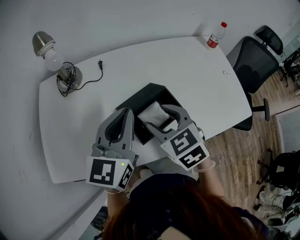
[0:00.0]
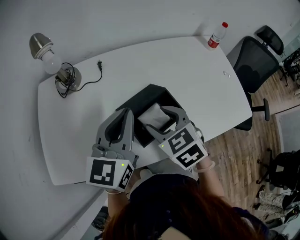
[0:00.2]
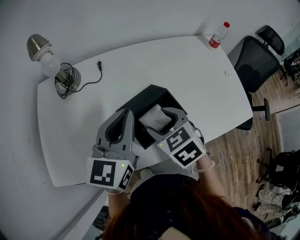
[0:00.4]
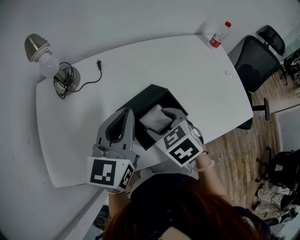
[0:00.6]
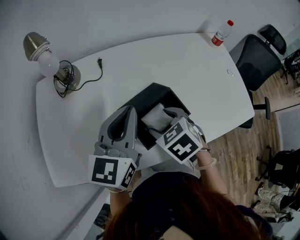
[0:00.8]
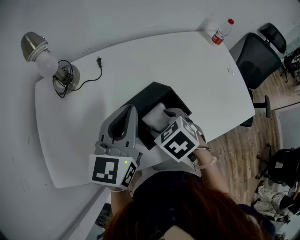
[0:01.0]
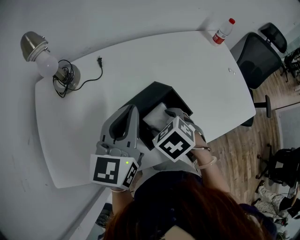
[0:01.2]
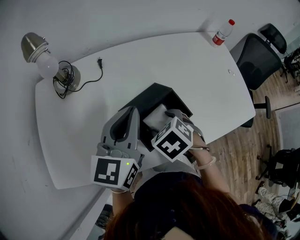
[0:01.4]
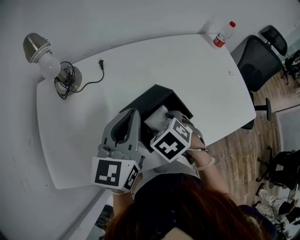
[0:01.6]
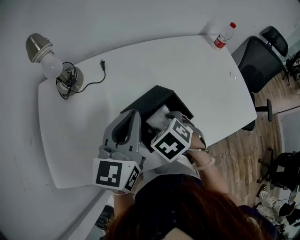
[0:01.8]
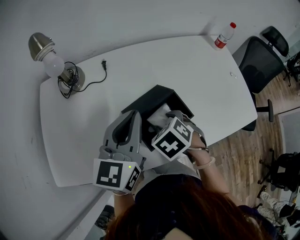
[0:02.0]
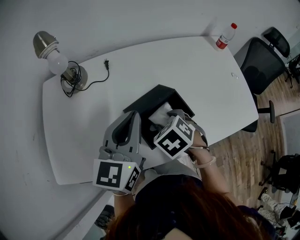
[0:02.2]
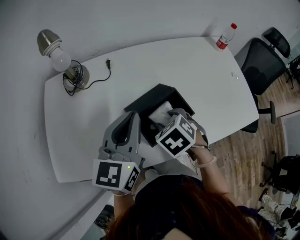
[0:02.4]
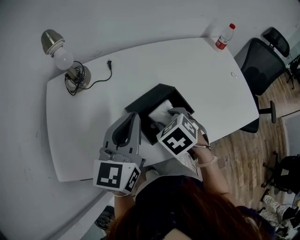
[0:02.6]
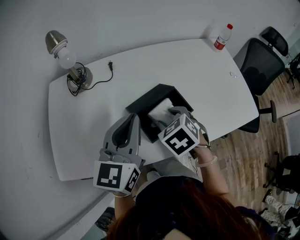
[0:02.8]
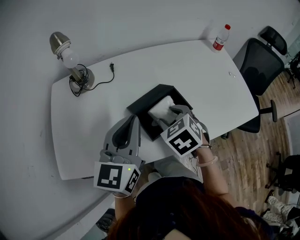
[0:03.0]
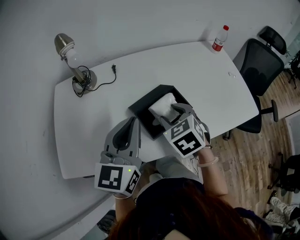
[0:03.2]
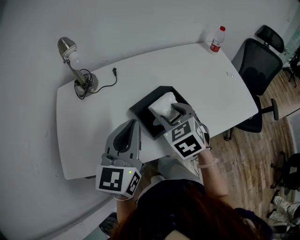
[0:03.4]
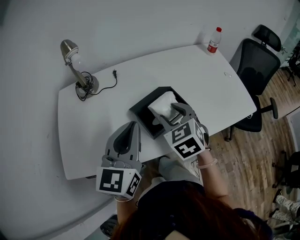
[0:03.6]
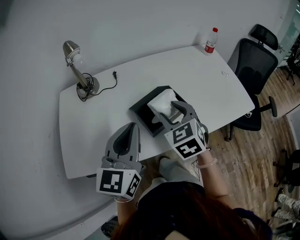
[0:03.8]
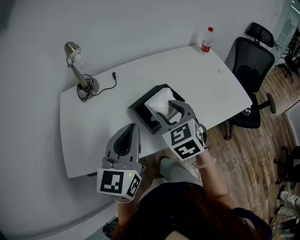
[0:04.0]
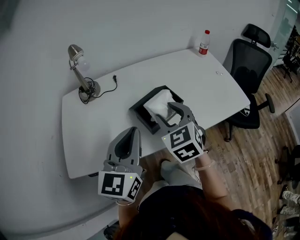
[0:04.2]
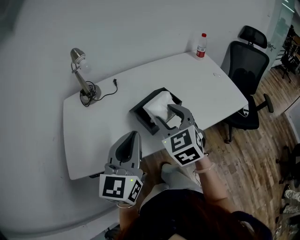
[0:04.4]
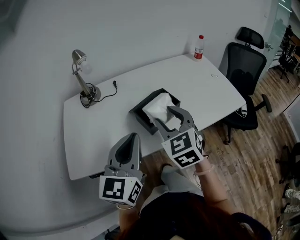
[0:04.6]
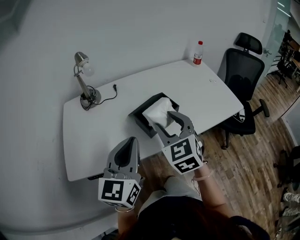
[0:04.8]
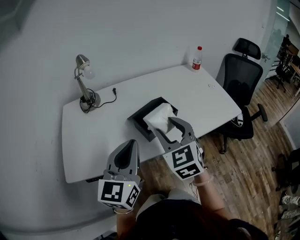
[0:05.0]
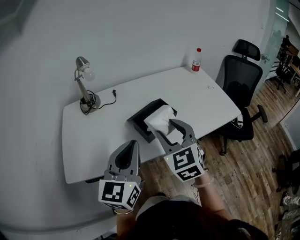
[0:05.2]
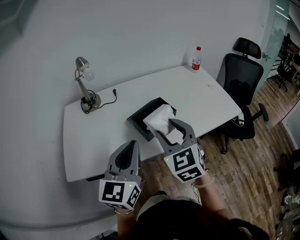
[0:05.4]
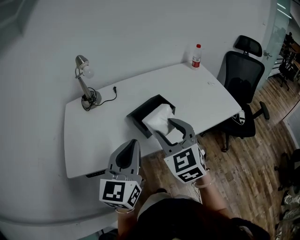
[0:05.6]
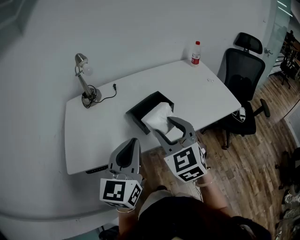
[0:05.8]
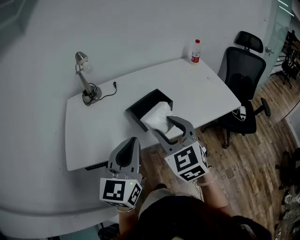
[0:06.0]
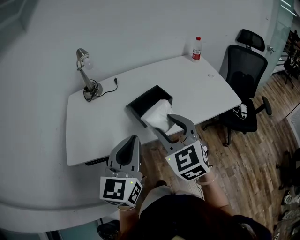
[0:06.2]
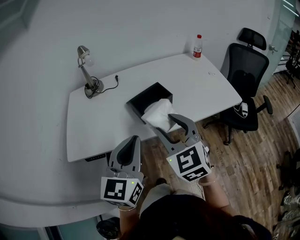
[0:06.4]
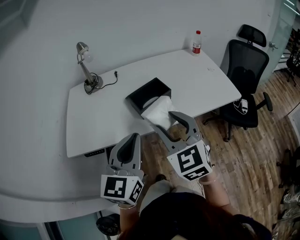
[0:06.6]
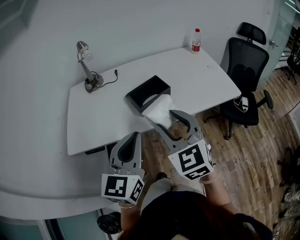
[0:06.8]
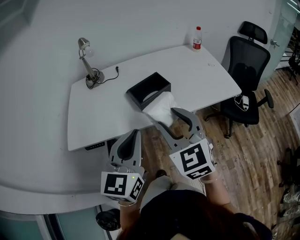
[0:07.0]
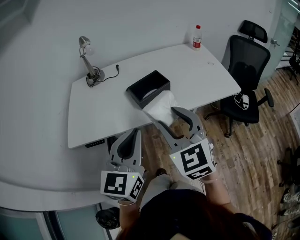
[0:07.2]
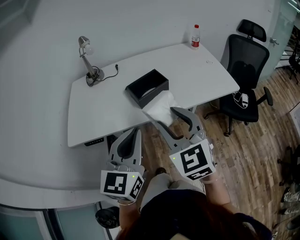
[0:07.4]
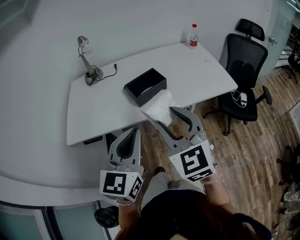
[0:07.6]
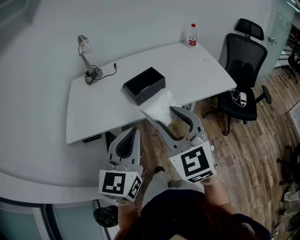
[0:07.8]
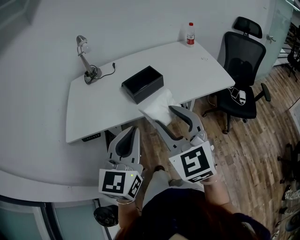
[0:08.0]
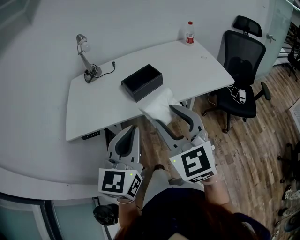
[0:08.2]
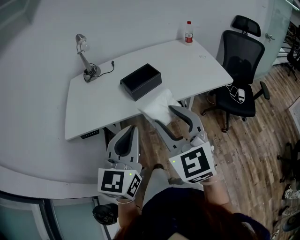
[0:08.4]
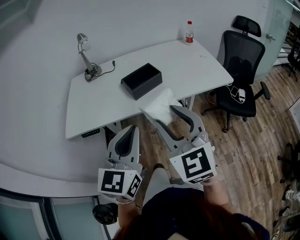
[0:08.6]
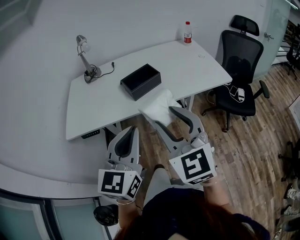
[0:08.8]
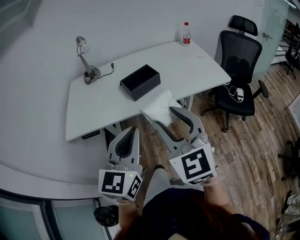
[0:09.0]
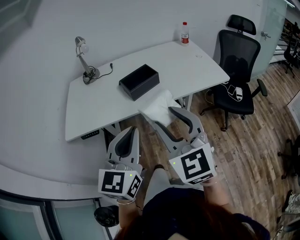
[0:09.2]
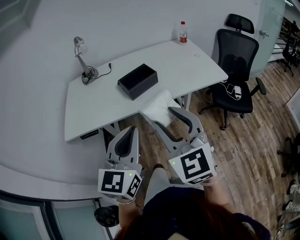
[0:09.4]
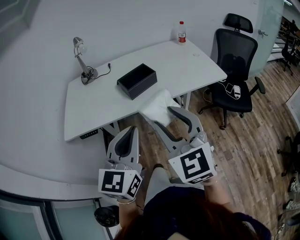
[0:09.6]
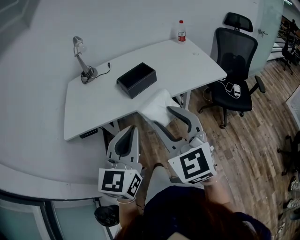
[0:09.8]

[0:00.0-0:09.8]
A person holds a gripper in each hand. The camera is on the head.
0:00.0 to 0:01.4: The right gripper travels downward by roughly 10 cm, and swivels approximately 30 degrees.
0:01.4 to 0:02.8: The left gripper is displaced backward by about 5 cm.
0:02.8 to 0:04.2: The left gripper is displaced backward by about 10 cm. The right gripper moves upward and backward, some 15 cm, and points its fingers some 30 degrees further upward.
0:04.2 to 0:05.6: Both grippers move backward, some 5 cm.
0:05.6 to 0:07.0: Both grippers travel together backward, some 10 cm.
0:07.0 to 0:08.4: The two grippers go about 10 cm backward.
0:08.4 to 0:09.8: The grippers move only a little.

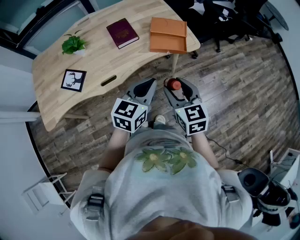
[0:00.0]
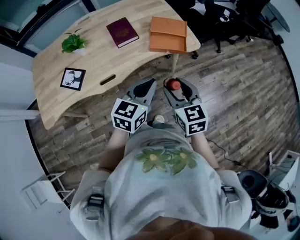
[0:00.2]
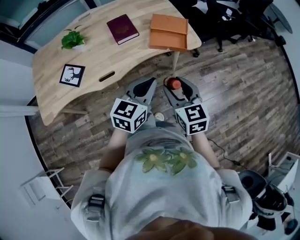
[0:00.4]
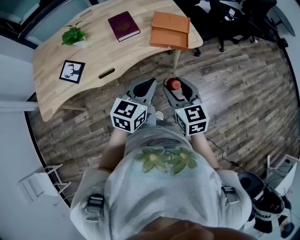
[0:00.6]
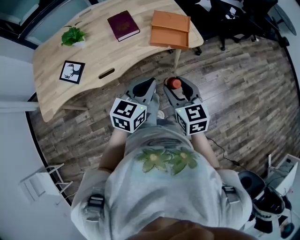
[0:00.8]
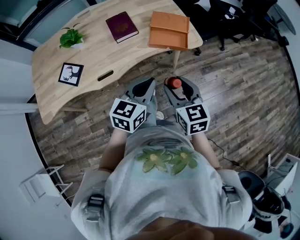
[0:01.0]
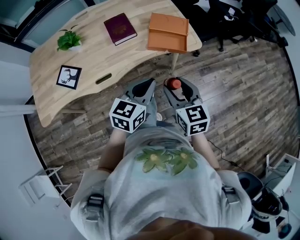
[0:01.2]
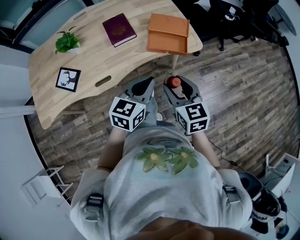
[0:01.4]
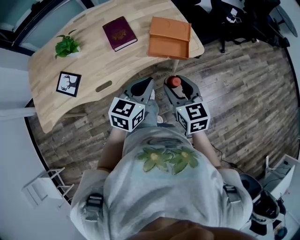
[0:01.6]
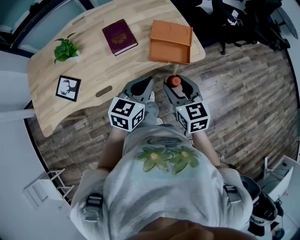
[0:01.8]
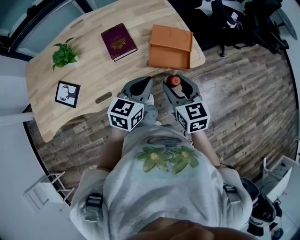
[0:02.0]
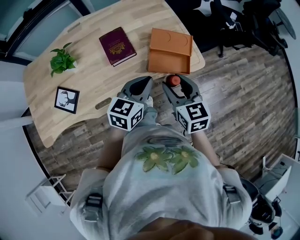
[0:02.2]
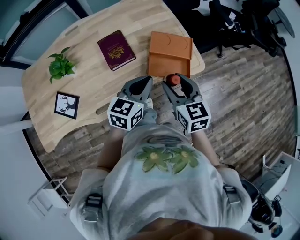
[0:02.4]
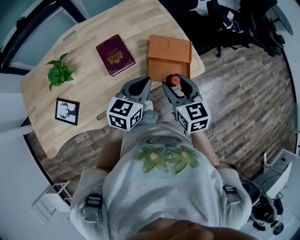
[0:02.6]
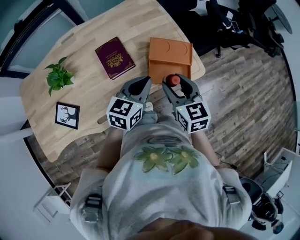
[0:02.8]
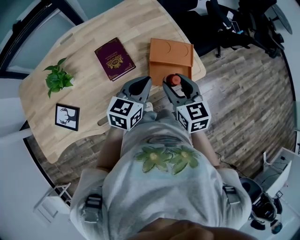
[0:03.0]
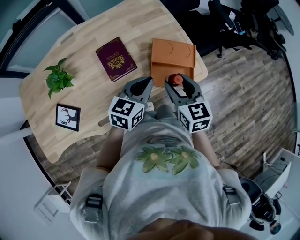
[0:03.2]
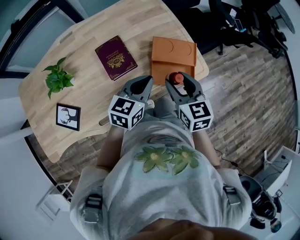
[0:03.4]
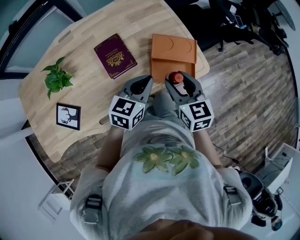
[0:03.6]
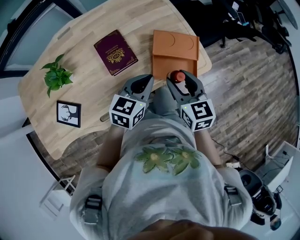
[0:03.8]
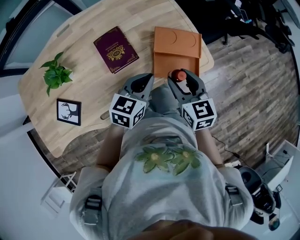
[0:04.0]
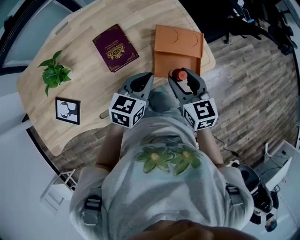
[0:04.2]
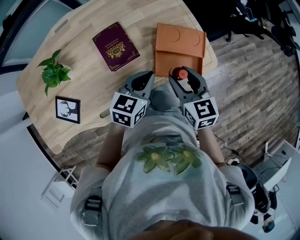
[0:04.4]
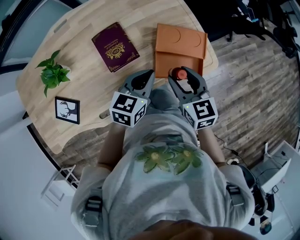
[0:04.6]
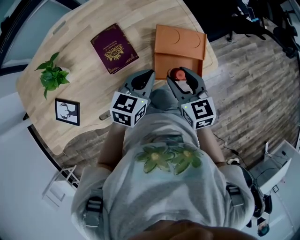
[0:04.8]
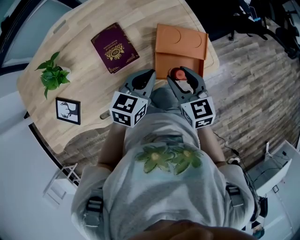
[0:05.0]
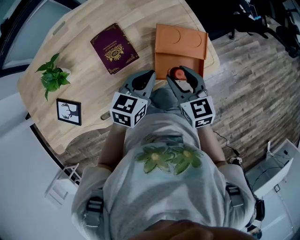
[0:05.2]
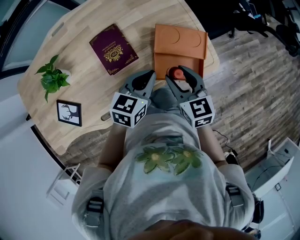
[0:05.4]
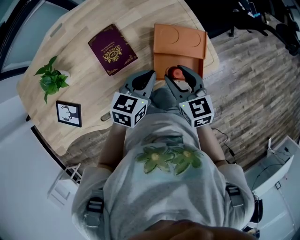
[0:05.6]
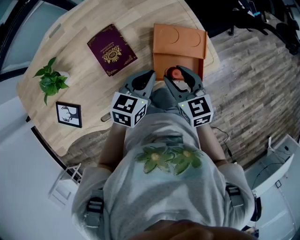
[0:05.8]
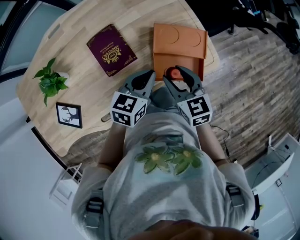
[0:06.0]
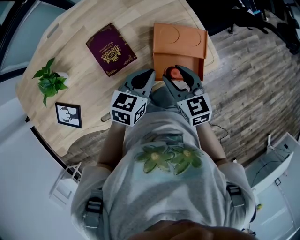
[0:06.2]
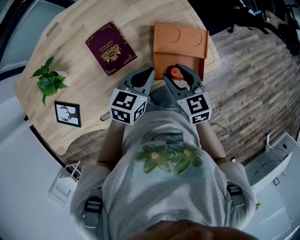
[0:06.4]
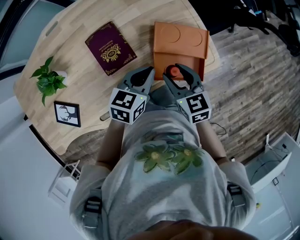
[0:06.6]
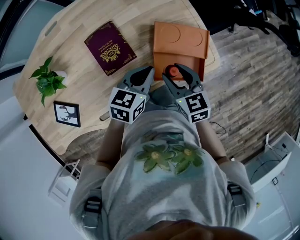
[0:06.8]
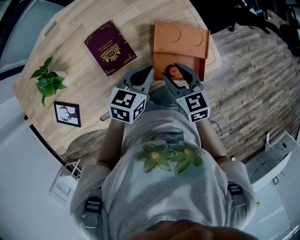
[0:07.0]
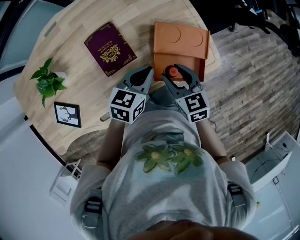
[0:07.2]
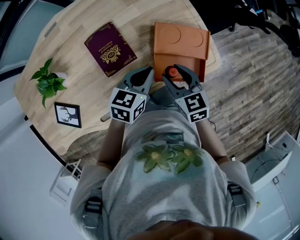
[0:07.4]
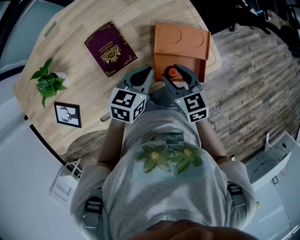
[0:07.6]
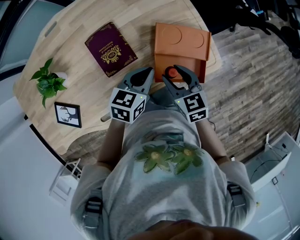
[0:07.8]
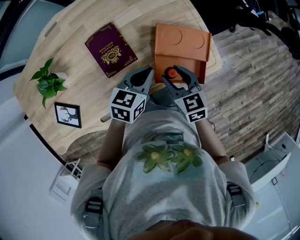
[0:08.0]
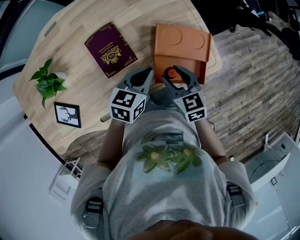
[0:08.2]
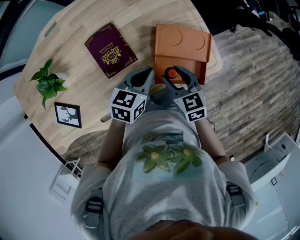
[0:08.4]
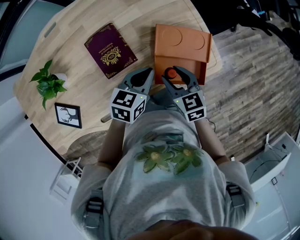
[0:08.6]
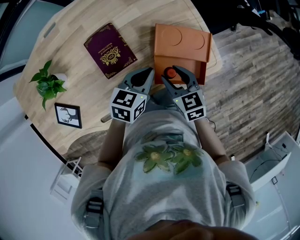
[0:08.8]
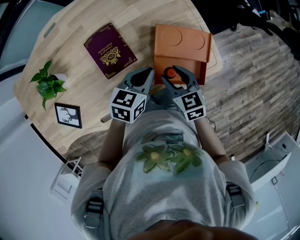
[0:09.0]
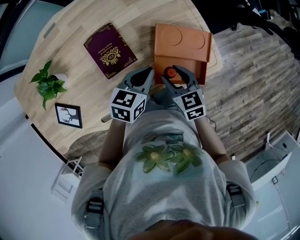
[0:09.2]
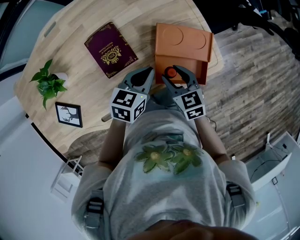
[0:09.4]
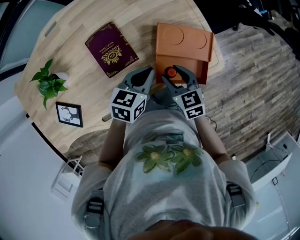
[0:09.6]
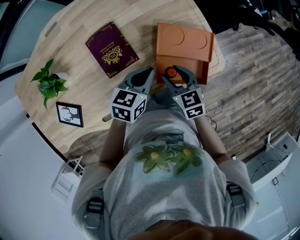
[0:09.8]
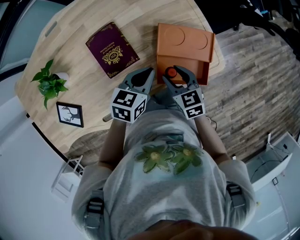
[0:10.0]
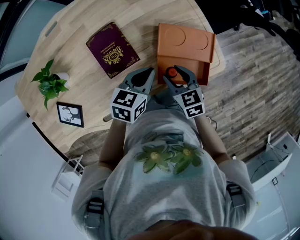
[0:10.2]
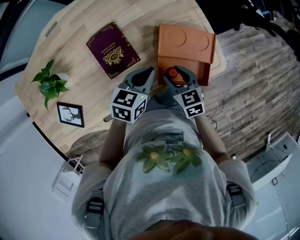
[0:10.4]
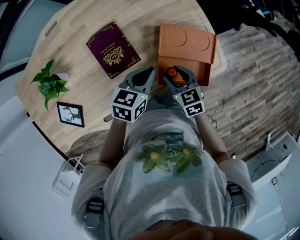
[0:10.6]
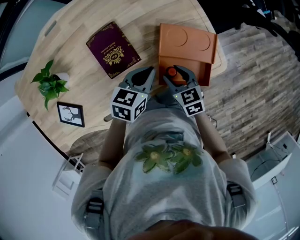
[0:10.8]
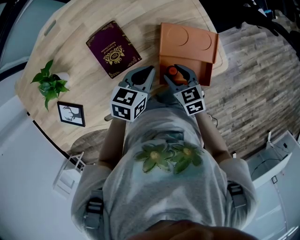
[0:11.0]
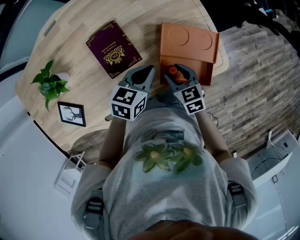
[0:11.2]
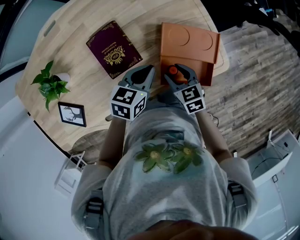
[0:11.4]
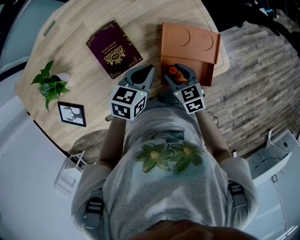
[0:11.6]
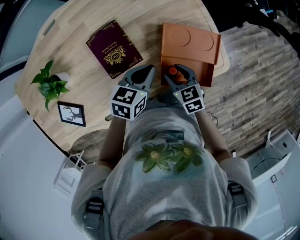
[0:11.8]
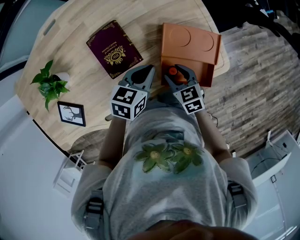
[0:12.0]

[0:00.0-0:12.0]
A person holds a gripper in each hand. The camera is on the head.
0:00.0 to 0:01.6: Both grippers move forward, roughly 10 cm.
0:01.6 to 0:03.0: Both grippers travel together forward, roughly 20 cm.
0:03.0 to 0:04.4: Both grippers move downward, approximately 5 cm.
0:04.4 to 0:06.0: The right gripper moves about 5 cm.
0:06.0 to 0:07.6: The grippers make only small movements.
0:07.6 to 0:10.4: The grippers stay close to where they were, moving slightly.
0:10.4 to 0:12.0: There are only small adjustments of the grippers.

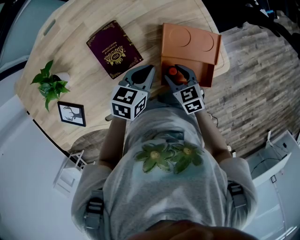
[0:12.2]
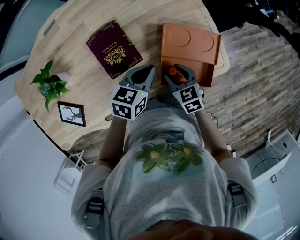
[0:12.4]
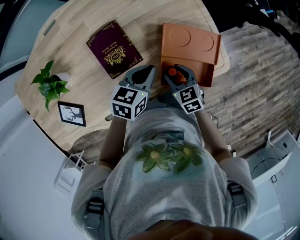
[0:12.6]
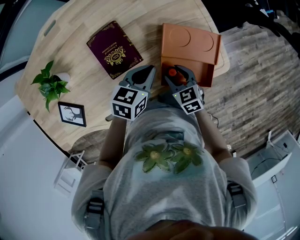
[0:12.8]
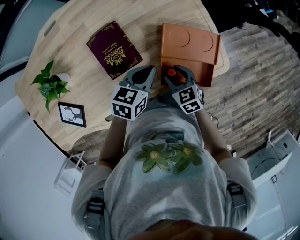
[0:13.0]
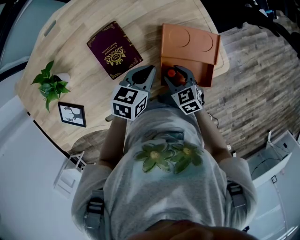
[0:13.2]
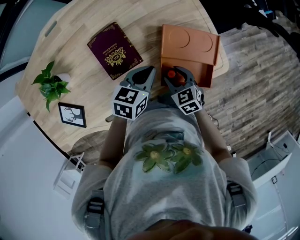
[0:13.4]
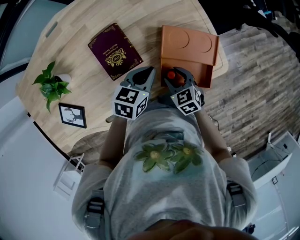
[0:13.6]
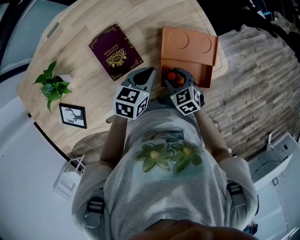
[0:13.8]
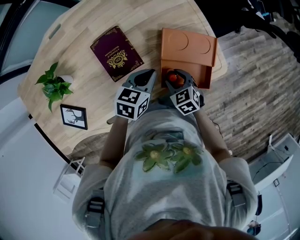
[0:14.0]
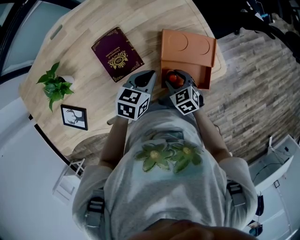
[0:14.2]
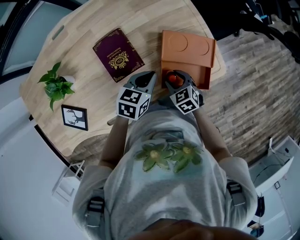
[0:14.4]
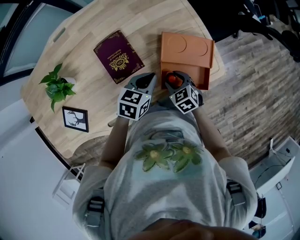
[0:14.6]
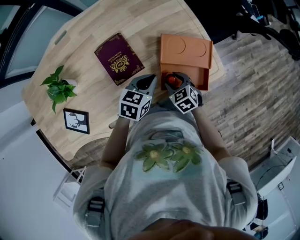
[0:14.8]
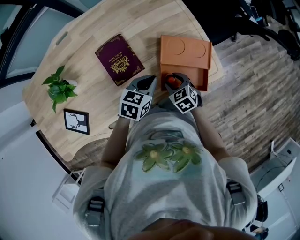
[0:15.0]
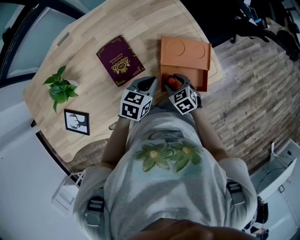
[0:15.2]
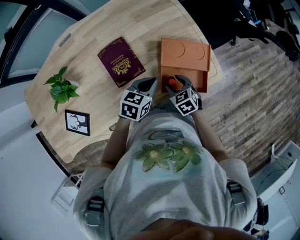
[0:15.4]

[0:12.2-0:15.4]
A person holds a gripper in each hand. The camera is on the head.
0:12.2 to 0:15.4: There are only small adjustments of the grippers.
